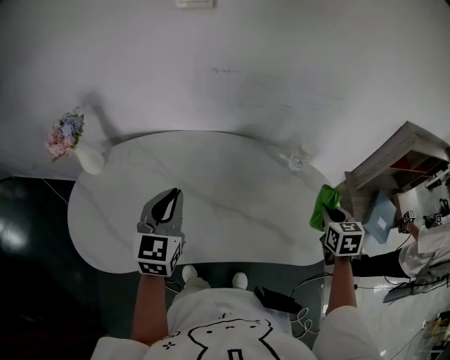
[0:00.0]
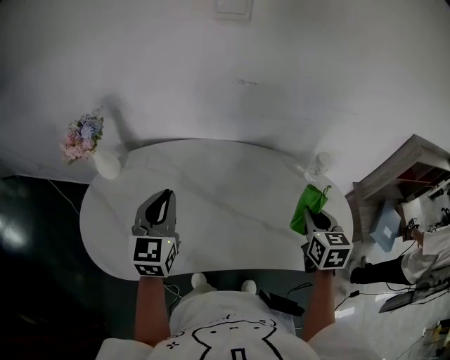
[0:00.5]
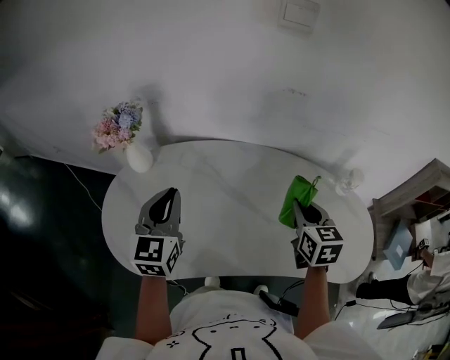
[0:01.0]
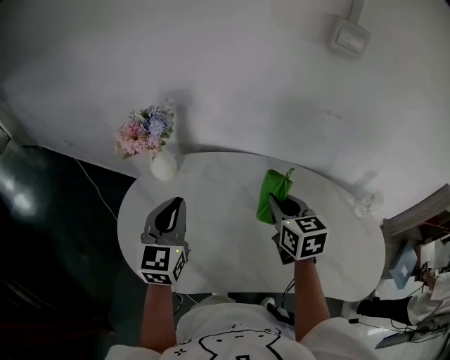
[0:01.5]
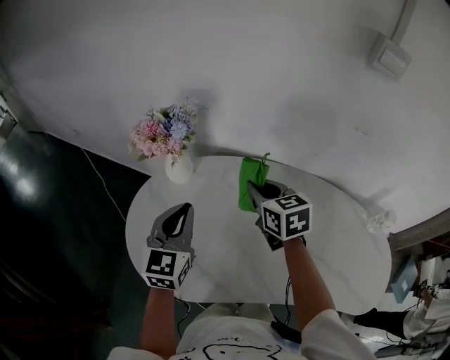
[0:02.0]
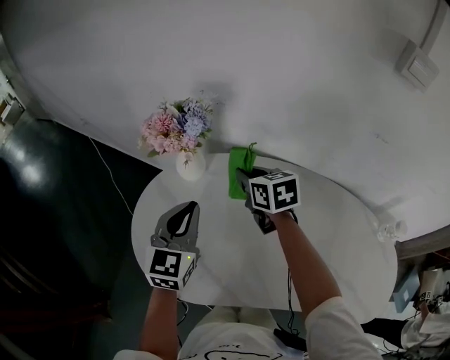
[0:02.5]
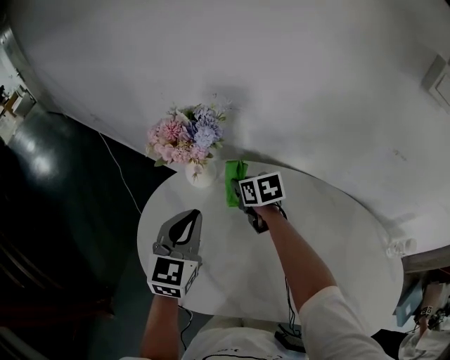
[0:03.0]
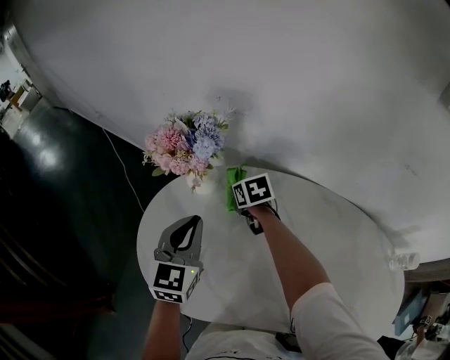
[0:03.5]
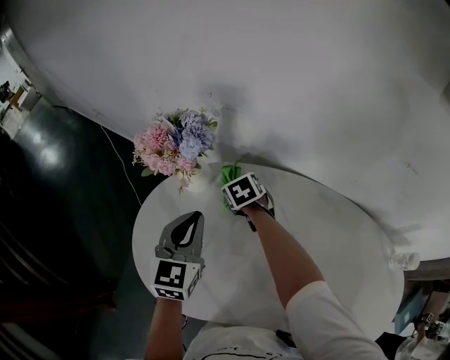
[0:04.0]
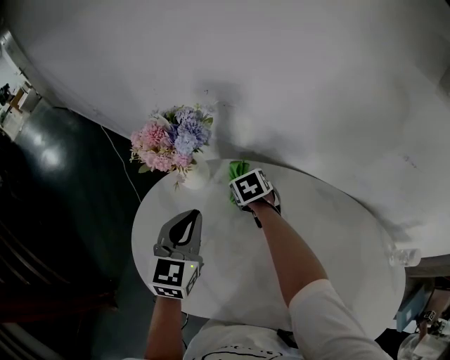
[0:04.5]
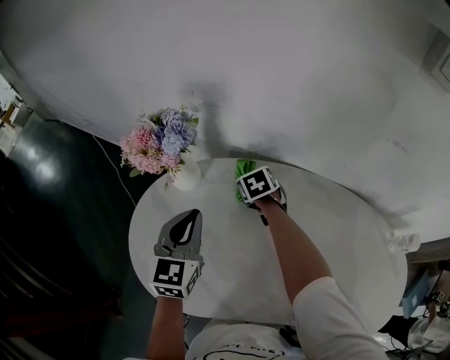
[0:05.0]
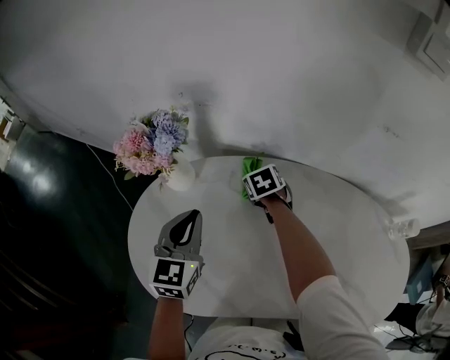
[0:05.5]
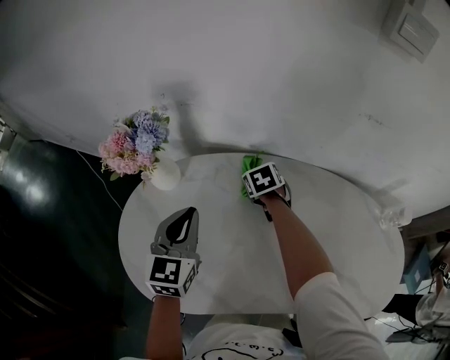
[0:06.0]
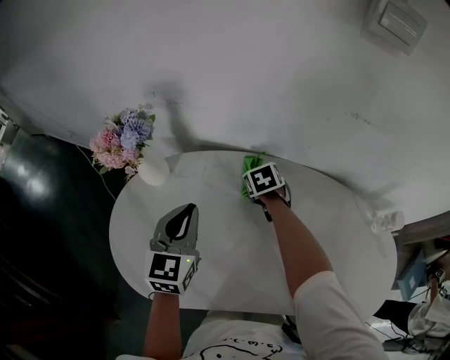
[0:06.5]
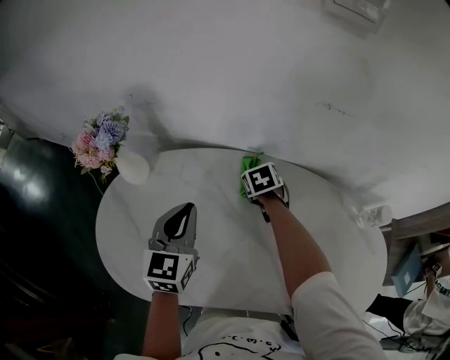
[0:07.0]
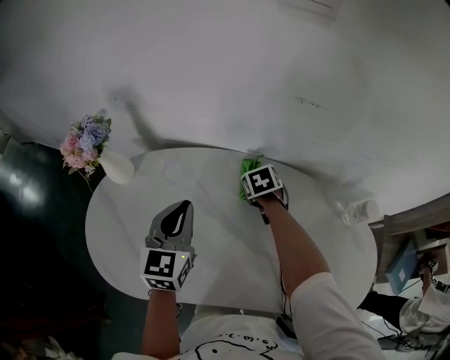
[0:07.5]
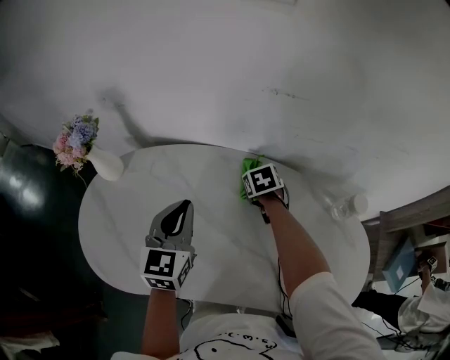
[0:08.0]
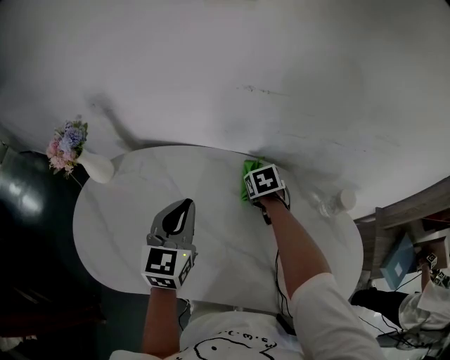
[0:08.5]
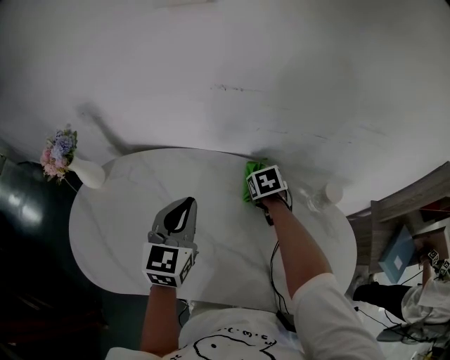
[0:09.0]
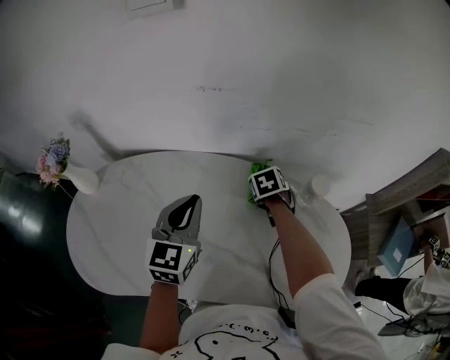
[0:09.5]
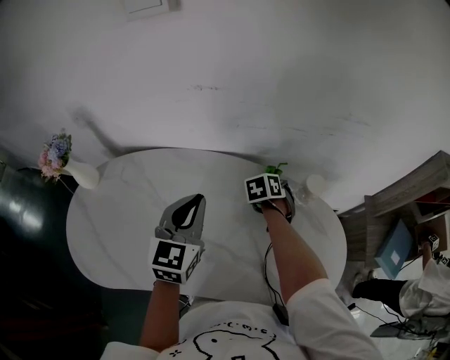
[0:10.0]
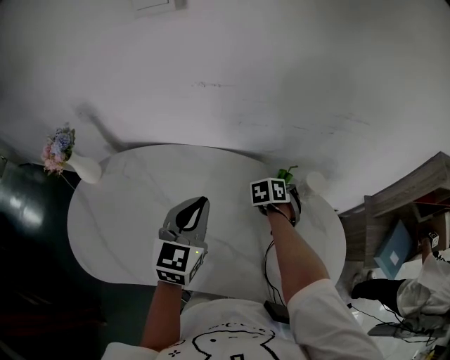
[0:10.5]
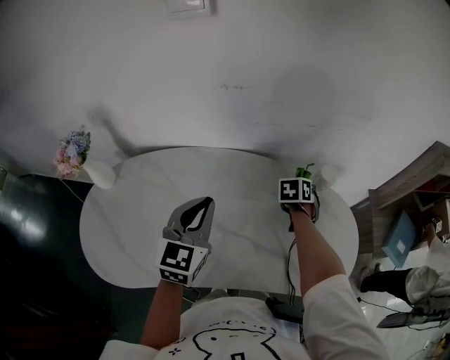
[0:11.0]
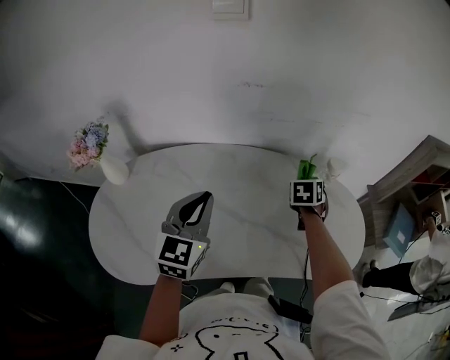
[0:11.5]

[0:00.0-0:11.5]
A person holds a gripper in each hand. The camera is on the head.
0:00.0 to 0:02.0: The left gripper shifts by approximately 35 cm. Meanwhile the right gripper moves some 70 cm, and rotates about 40 degrees.
0:02.0 to 0:04.0: The right gripper moves downward, forward and to the left, roughly 25 cm, and changes its angle by some 30 degrees, while the left gripper moves forward, roughly 5 cm.
0:04.0 to 0:06.0: The left gripper shifts approximately 5 cm to the right. Meanwhile the right gripper is displaced to the right by roughly 15 cm.
0:06.0 to 0:07.5: The two grippers go some 20 cm to the right.
0:07.5 to 0:09.5: Both grippers move to the right, roughly 20 cm.
0:09.5 to 0:11.5: The left gripper shifts by some 15 cm; the right gripper ends up about 15 cm from where it was, and changes its angle by some 30 degrees.

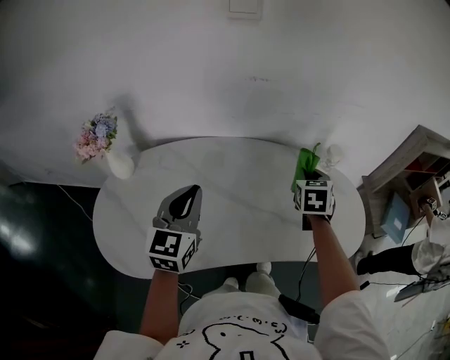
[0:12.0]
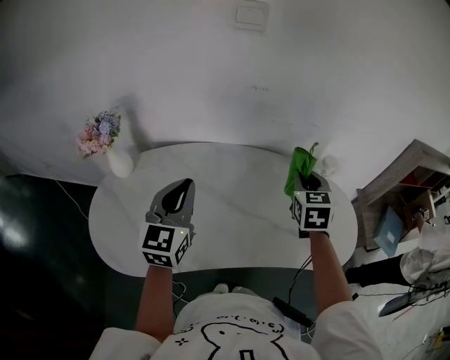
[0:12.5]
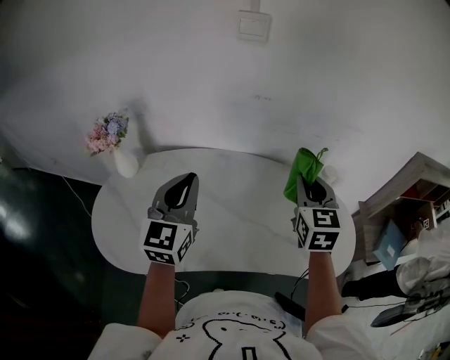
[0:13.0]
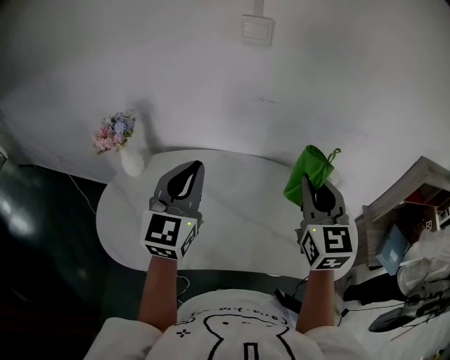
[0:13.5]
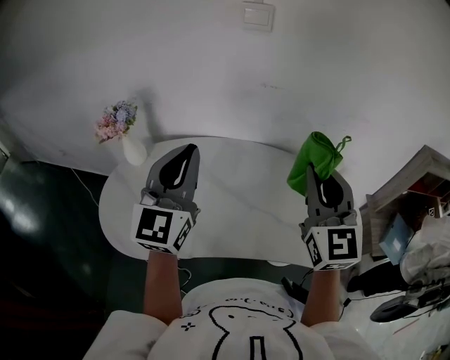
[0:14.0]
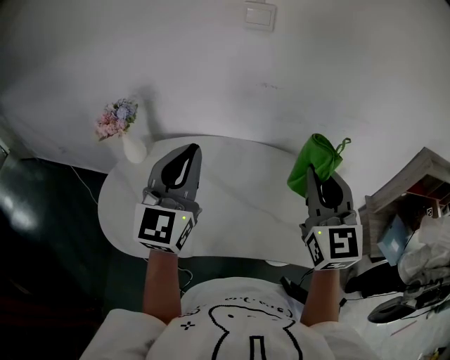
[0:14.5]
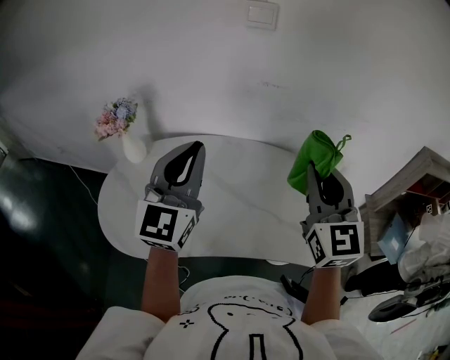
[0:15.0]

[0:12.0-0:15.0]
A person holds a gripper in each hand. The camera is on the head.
0:12.0 to 0:13.5: The right gripper moves upward and backward, about 25 cm, and angles its fingers upward, by about 30 degrees. The left gripper heads upward, covering approximately 10 cm.
0:13.5 to 0:15.0: The grippers stay close to where they were, moving slightly.

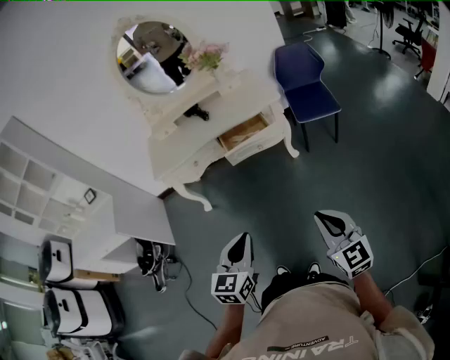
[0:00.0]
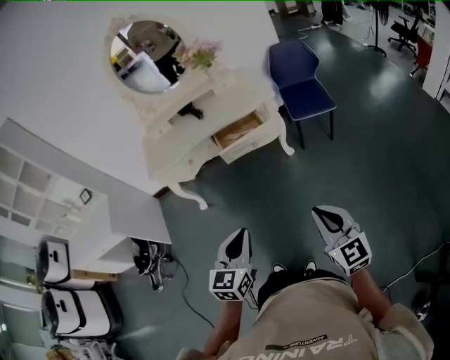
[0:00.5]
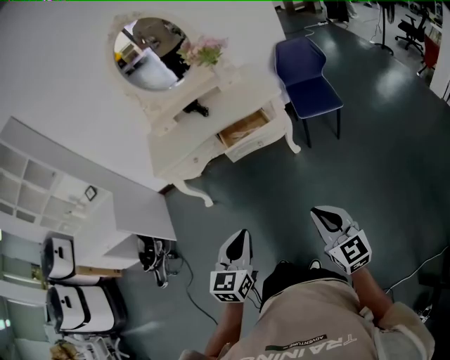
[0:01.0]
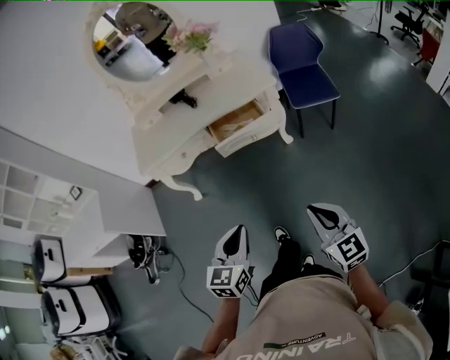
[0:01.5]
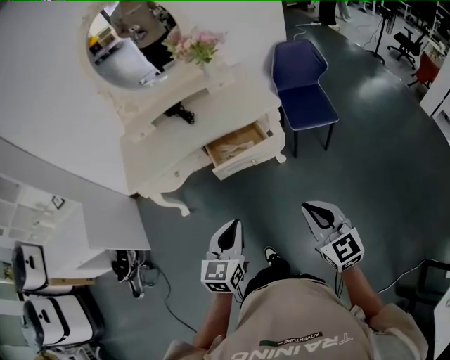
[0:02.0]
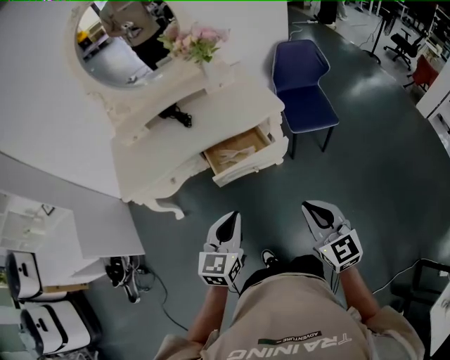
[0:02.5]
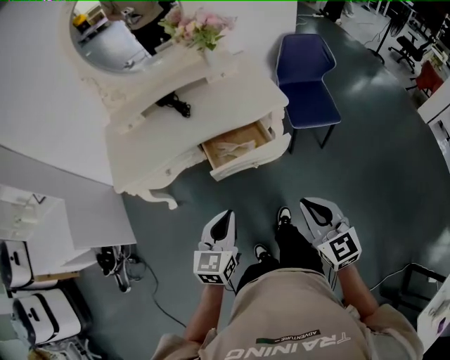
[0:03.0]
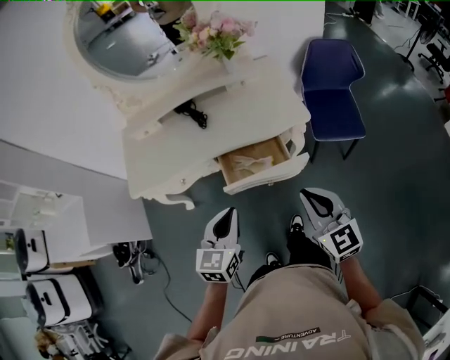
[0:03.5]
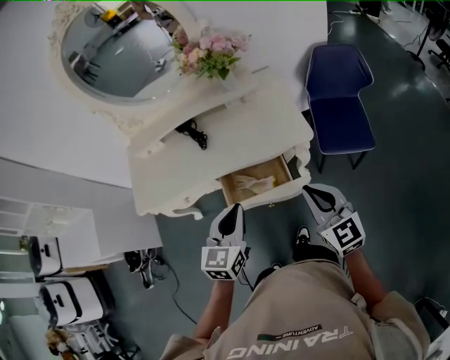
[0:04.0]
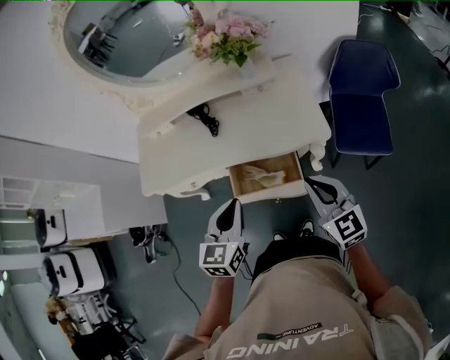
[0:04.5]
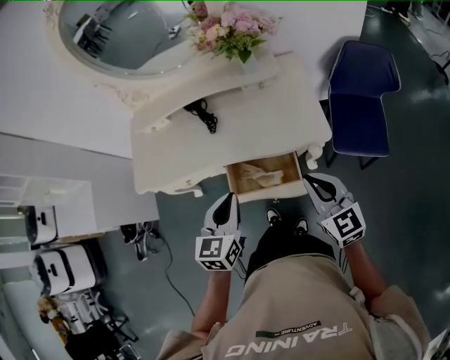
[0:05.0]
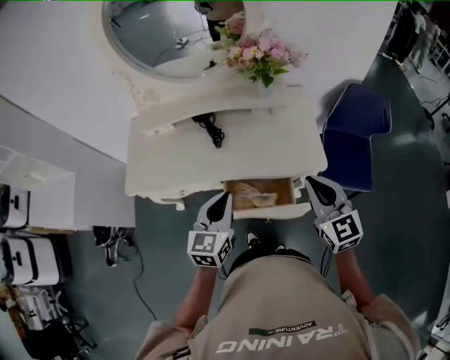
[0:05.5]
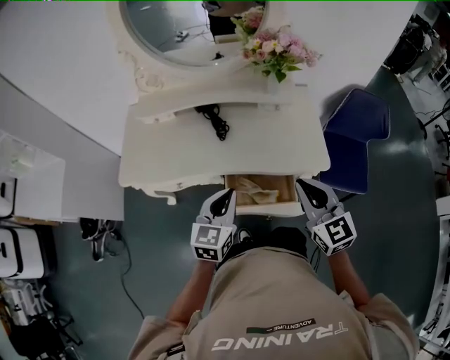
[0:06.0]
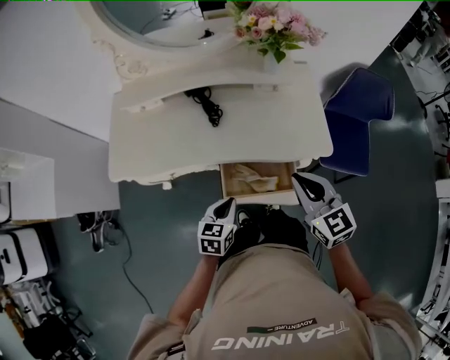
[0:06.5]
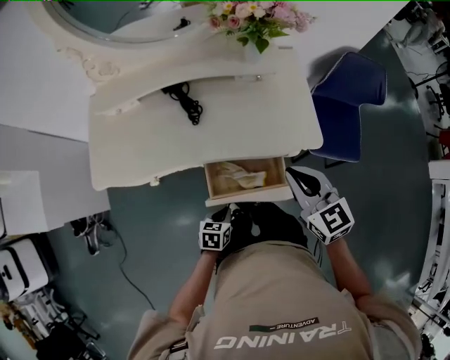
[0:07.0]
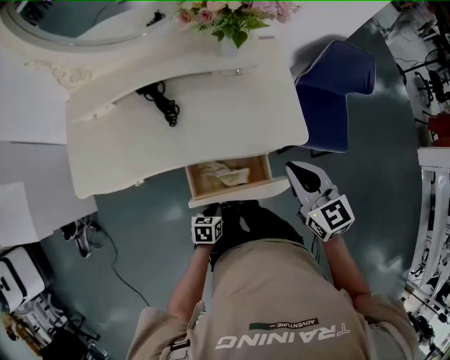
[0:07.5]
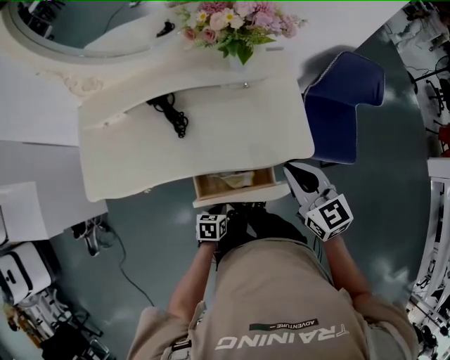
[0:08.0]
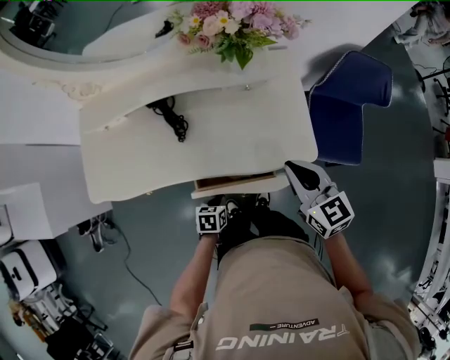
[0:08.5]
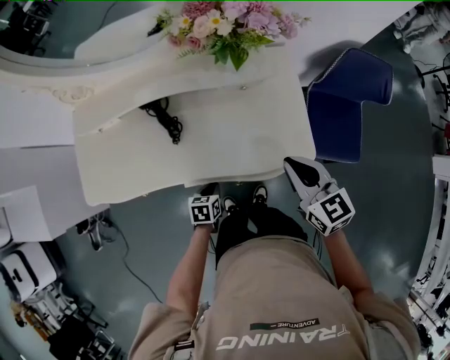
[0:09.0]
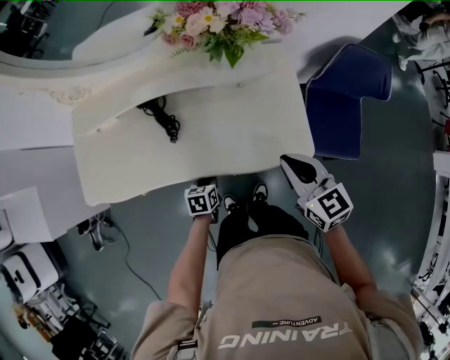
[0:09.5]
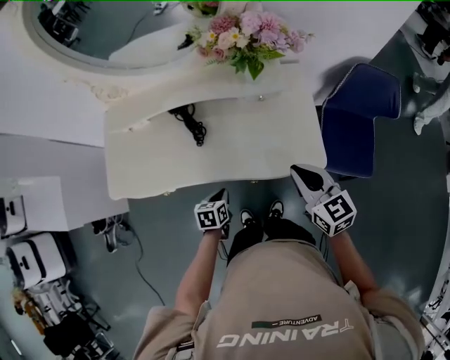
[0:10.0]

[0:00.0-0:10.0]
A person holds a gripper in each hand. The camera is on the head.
0:00.0 to 0:02.0: Both grippers move forward, approximately 20 cm.
0:02.0 to 0:04.0: The grippers both shift forward by about 30 cm.
0:04.0 to 0:06.0: The grippers both shift forward and to the left by approximately 10 cm.
0:06.0 to 0:08.0: The left gripper shifts about 30 cm downward, and angles its fingers downward, by roughly 40 degrees, while the right gripper travels forward, downward and to the right by roughly 10 cm.
0:08.0 to 0:10.0: The left gripper travels forward by approximately 10 cm.

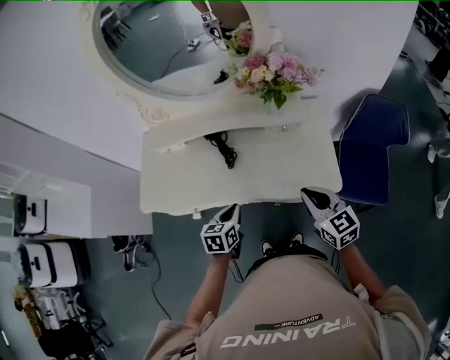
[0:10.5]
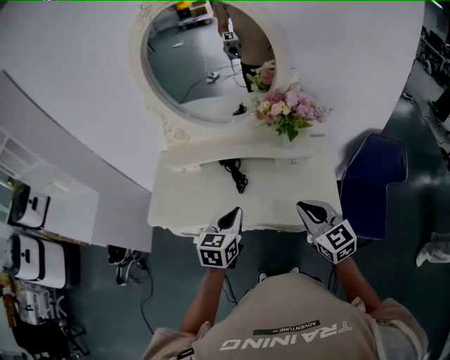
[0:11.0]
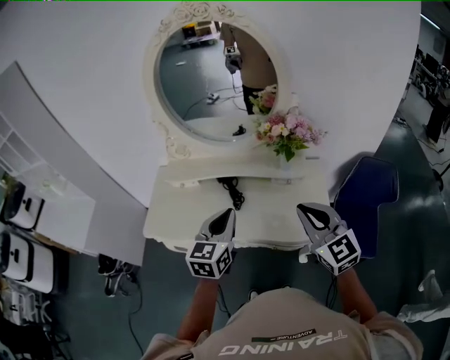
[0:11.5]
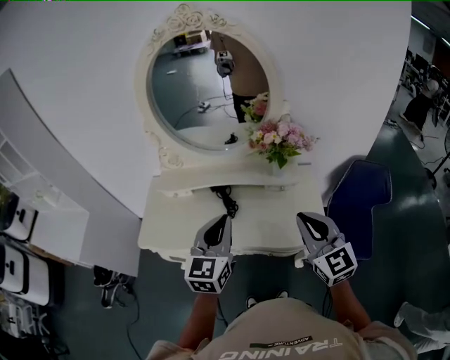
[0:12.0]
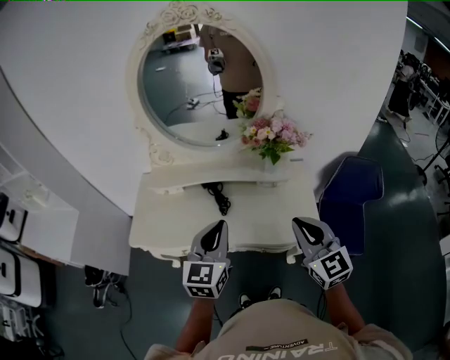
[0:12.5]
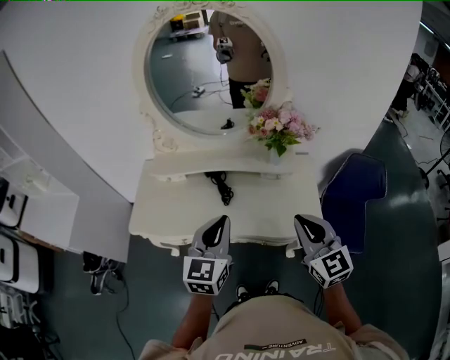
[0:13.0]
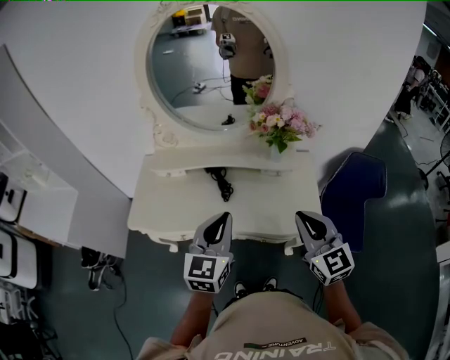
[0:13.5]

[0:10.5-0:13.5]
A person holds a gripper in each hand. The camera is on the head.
0:10.5 to 0:12.0: The left gripper is displaced upward by about 25 cm, and tilts its fingers approximately 30 degrees upward, while the right gripper travels upward by some 20 cm, and turns by approximately 20 degrees.
0:12.0 to 0:13.5: The grippers make only small movements.
